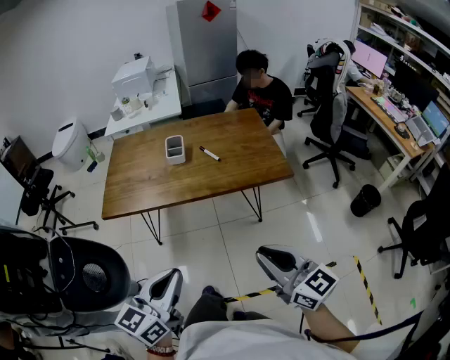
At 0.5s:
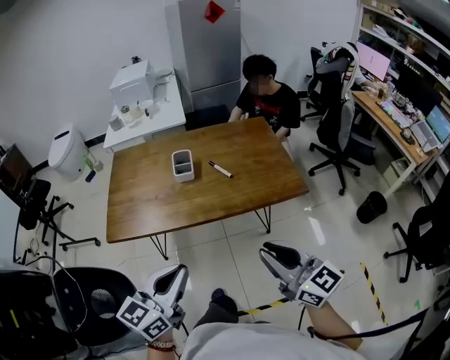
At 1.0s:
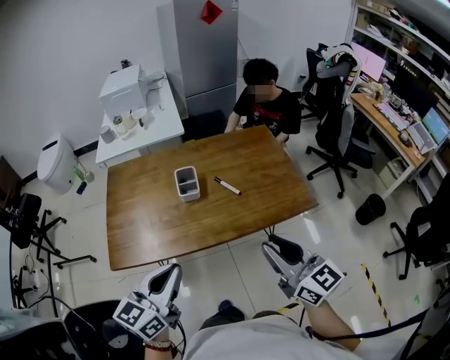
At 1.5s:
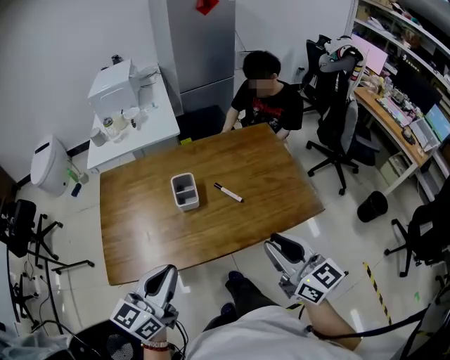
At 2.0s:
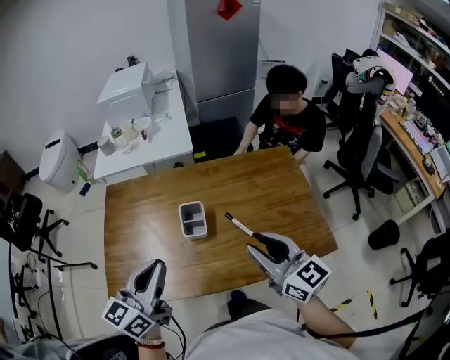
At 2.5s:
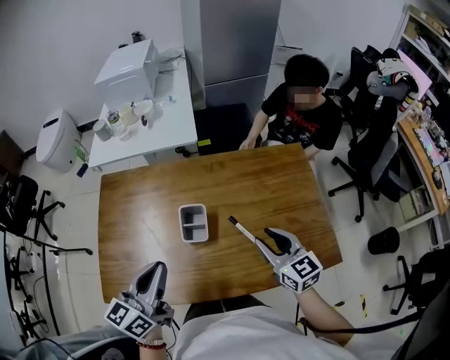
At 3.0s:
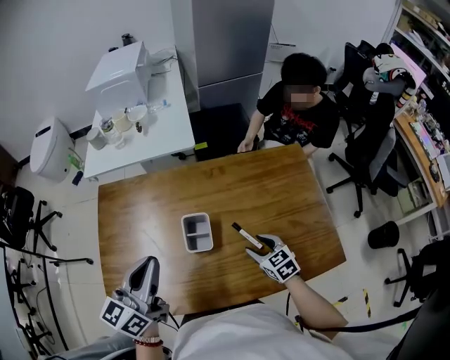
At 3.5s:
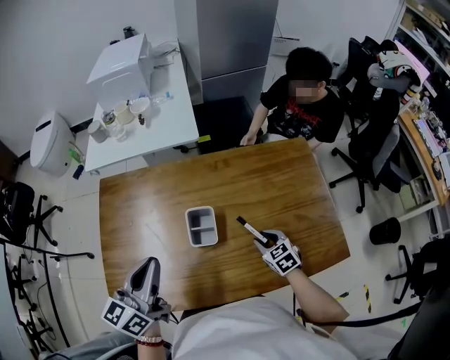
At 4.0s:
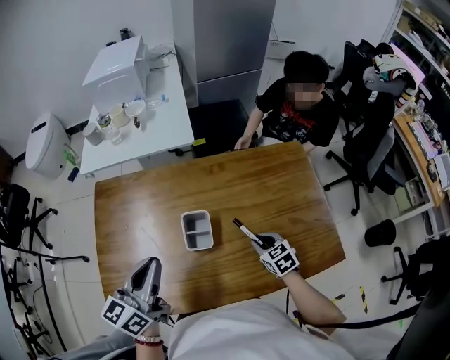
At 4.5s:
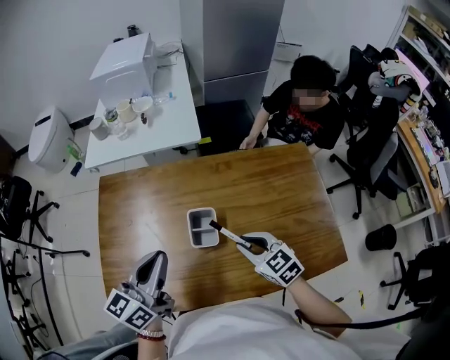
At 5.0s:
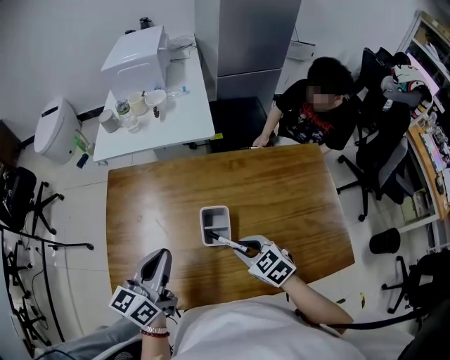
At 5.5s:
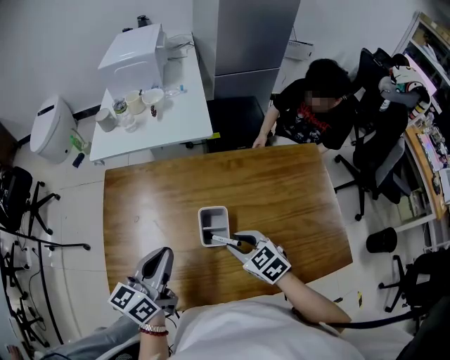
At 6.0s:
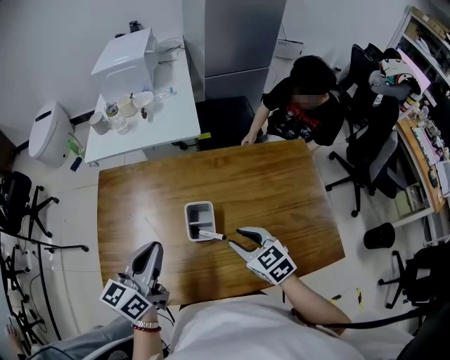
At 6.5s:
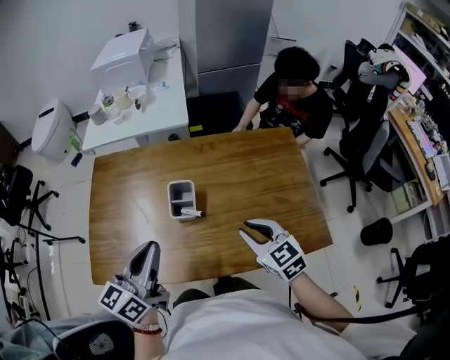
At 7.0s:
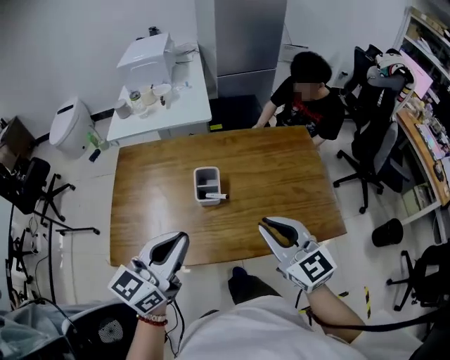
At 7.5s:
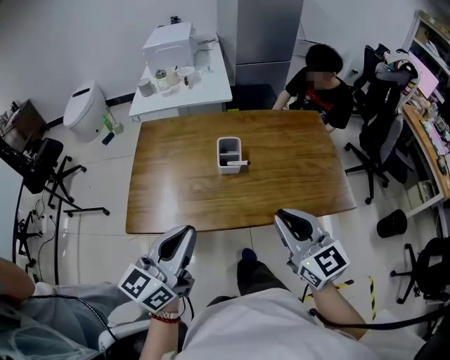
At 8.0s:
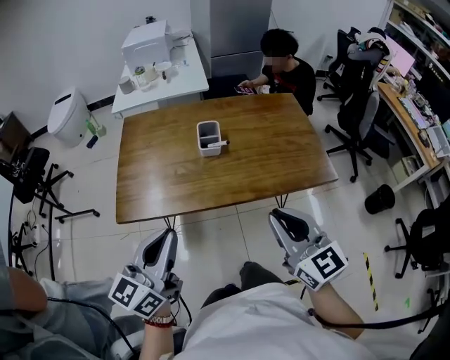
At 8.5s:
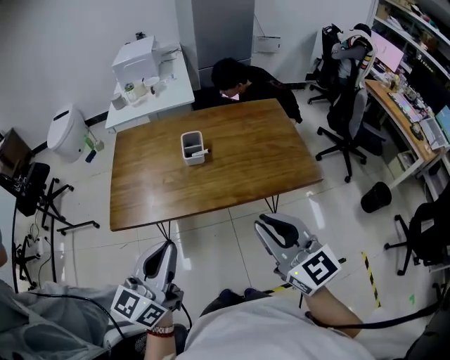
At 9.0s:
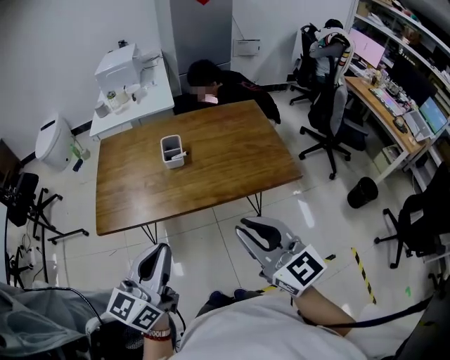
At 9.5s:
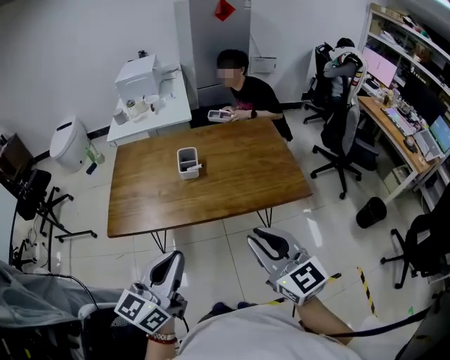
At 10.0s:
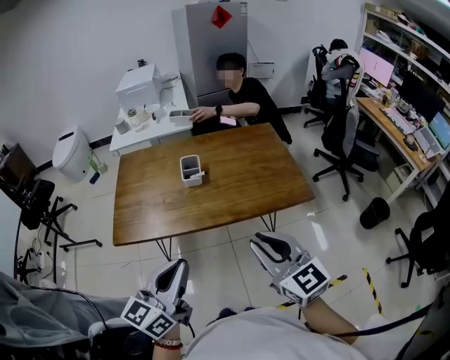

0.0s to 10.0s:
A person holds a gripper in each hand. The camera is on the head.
0.0s to 2.0s: Both grippers are carried forward, about 50 cm.
2.0s to 4.0s: The right gripper goes approximately 30 cm downward, angles its fingers downward, by about 40 degrees, and opens, then closes again, while the left gripper heads forward and downward, covering some 10 cm.
4.0s to 6.0s: The right gripper travels upward and to the left by roughly 15 cm.
6.0s to 8.0s: The left gripper goes roughly 35 cm backward, while the right gripper moves backward and upward, about 40 cm, swivels approximately 30 degrees, and closes up.
8.0s to 10.0s: The left gripper shifts roughly 15 cm to the right and backward. The right gripper travels backward and to the right by some 10 cm.

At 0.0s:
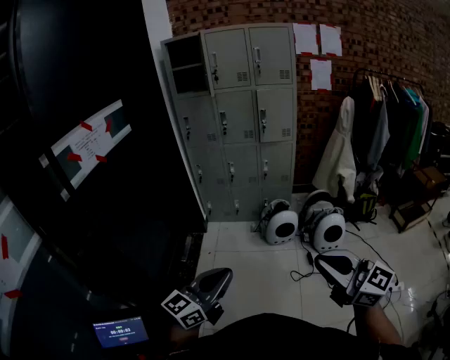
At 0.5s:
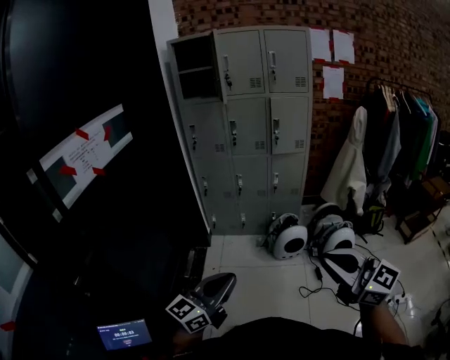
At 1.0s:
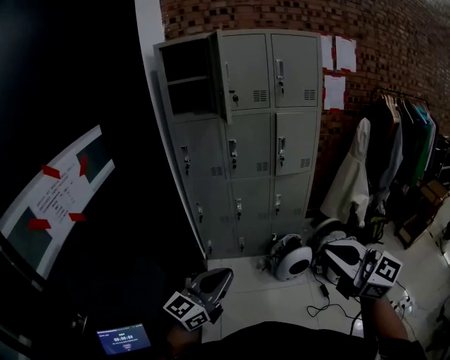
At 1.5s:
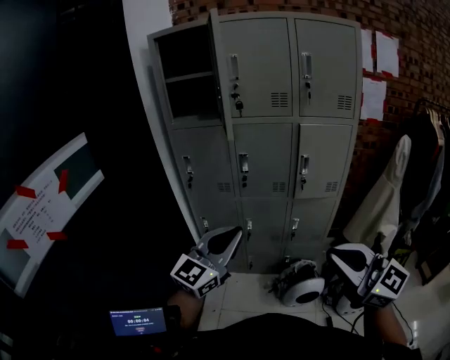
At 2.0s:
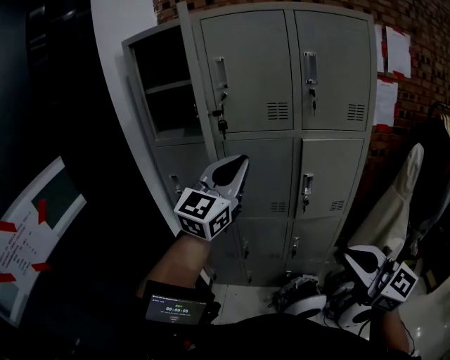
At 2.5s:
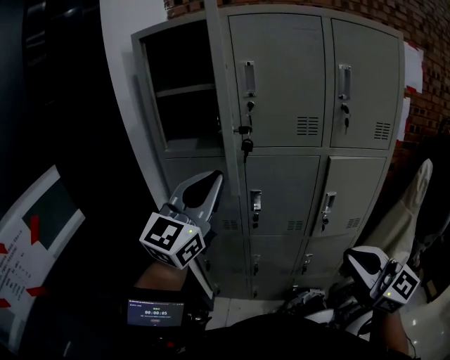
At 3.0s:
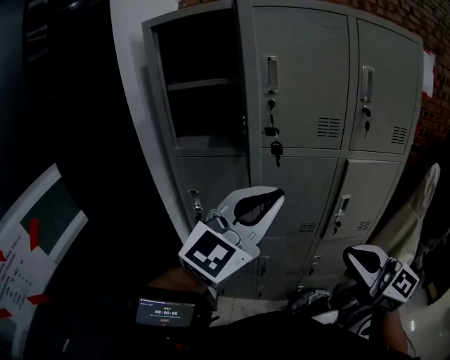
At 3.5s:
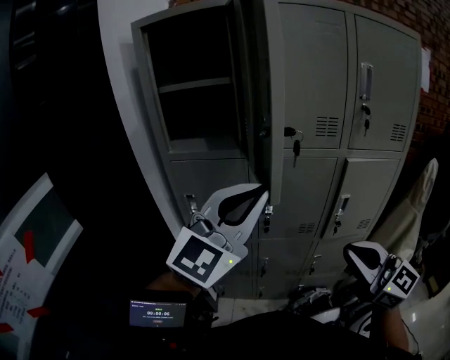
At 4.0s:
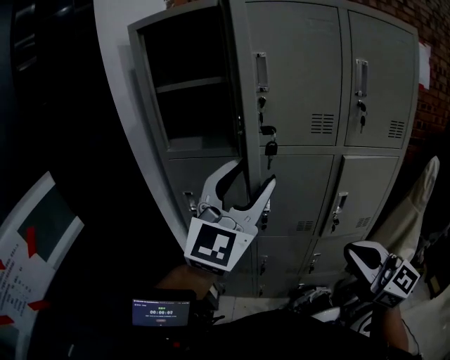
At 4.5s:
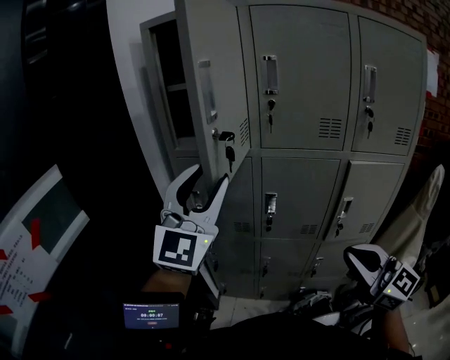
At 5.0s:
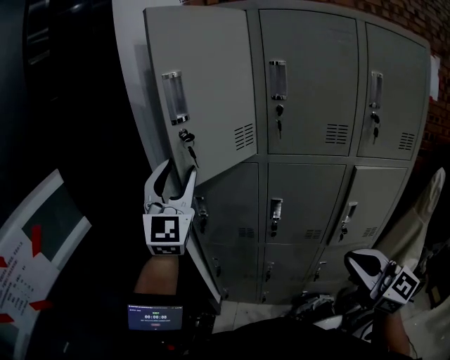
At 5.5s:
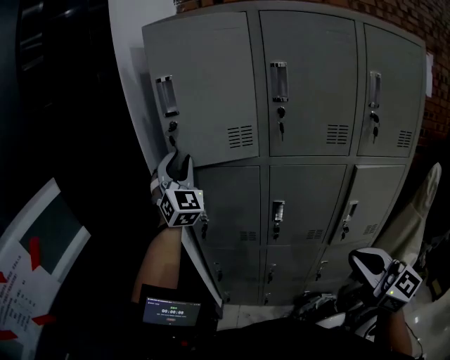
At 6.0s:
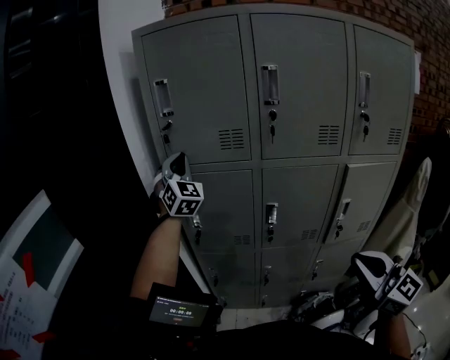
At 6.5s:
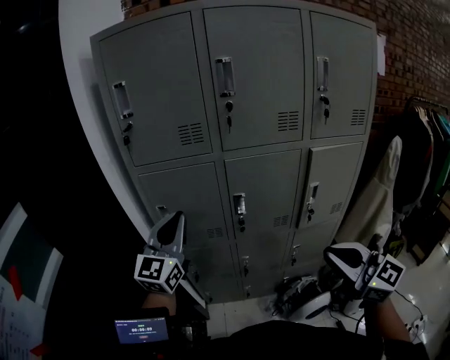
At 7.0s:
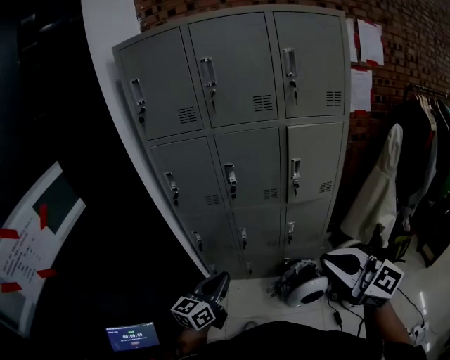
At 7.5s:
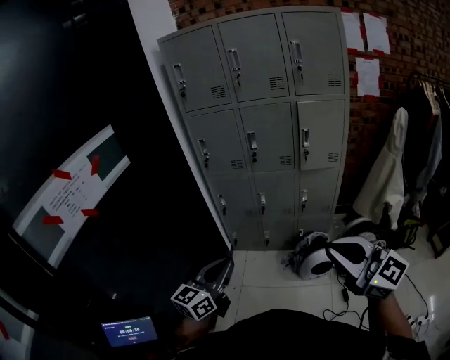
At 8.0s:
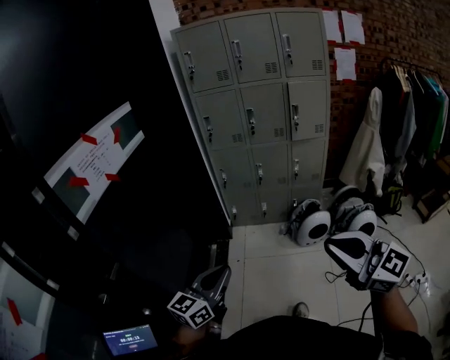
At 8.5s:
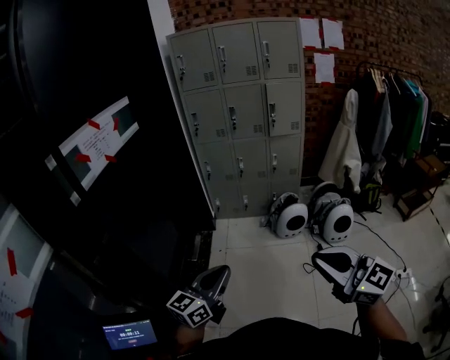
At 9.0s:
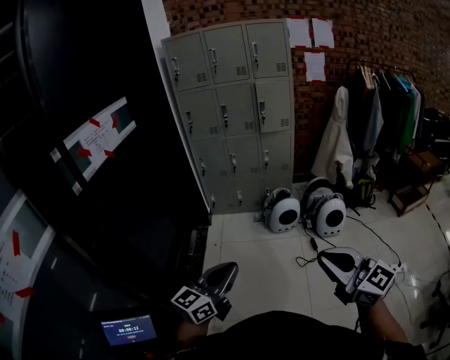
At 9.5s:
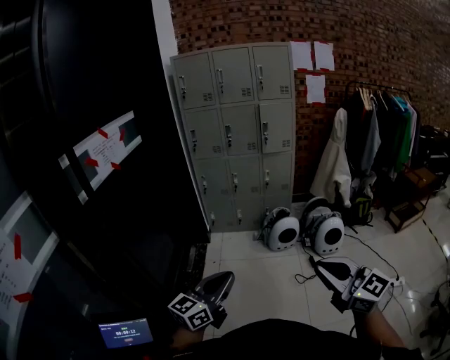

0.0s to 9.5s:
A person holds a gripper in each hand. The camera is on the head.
0.0s to 2.0s: The two grippers travel together, forward, some 80 cm. The left gripper swivels approximately 30 degrees.
2.0s to 4.0s: The left gripper goes some 10 cm to the left, and opens its fingers; the right gripper heads forward and to the left, covering approximately 15 cm.
4.0s to 5.5s: The left gripper moves forward and to the left, roughly 30 cm, changes its angle by roughly 50 degrees, and closes its fingers.
5.5s to 7.5s: Both grippers are carried backward, approximately 50 cm. The left gripper rolls counterclockwise, seen from behind, by roughly 70 degrees, and closes.
7.5s to 9.5s: The two grippers travel together, backward, some 50 cm.

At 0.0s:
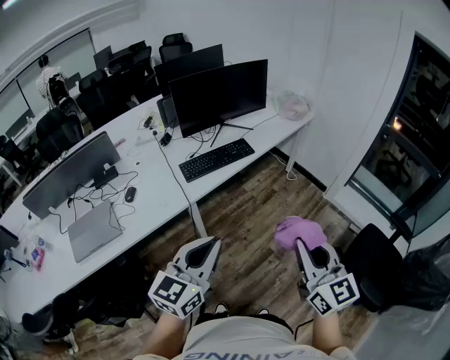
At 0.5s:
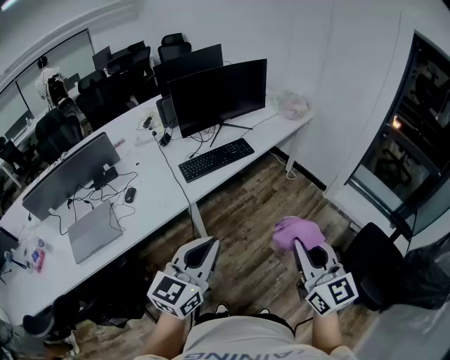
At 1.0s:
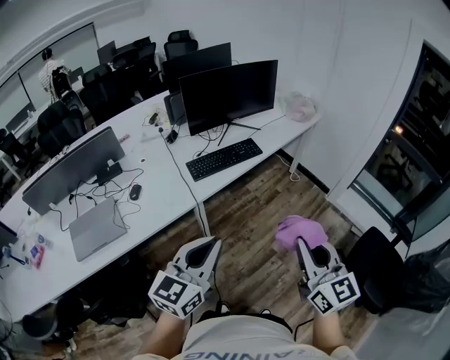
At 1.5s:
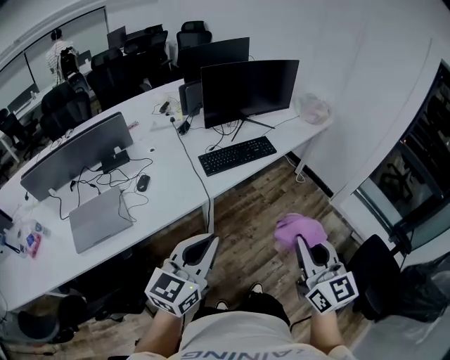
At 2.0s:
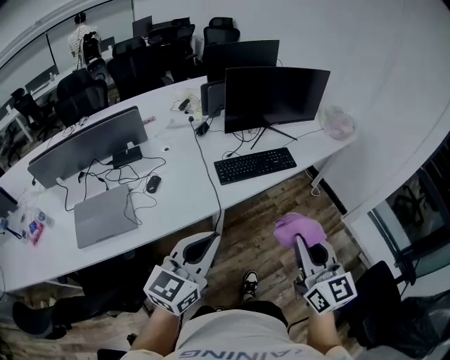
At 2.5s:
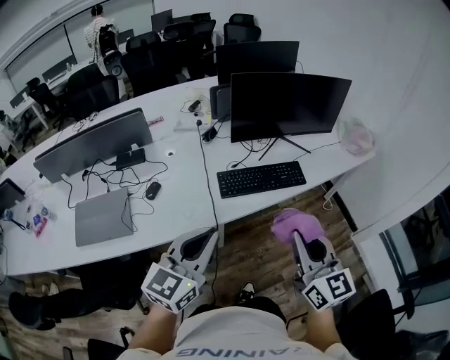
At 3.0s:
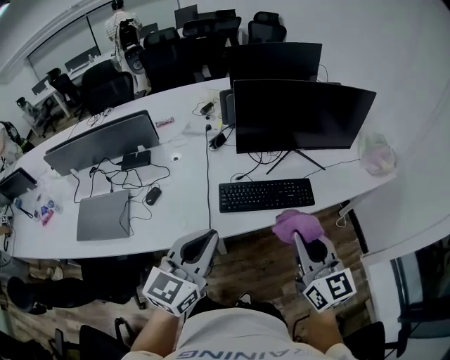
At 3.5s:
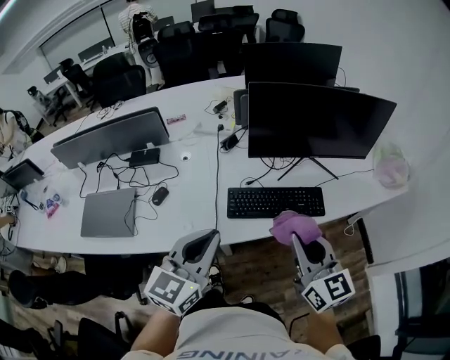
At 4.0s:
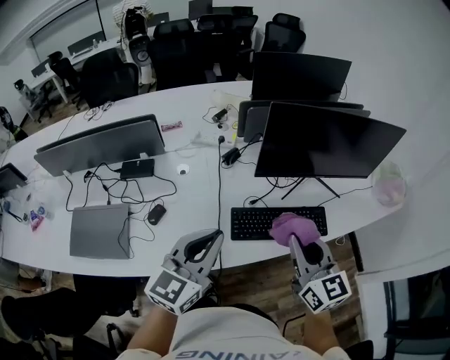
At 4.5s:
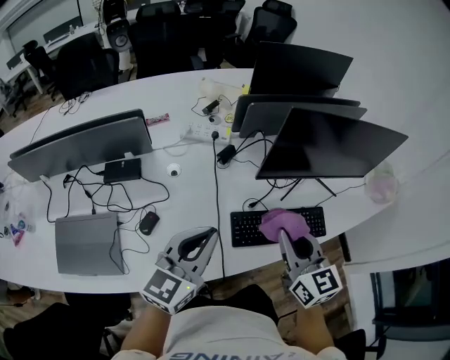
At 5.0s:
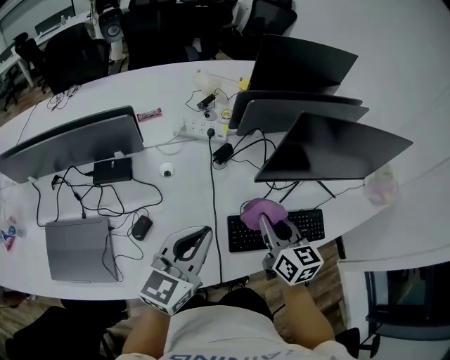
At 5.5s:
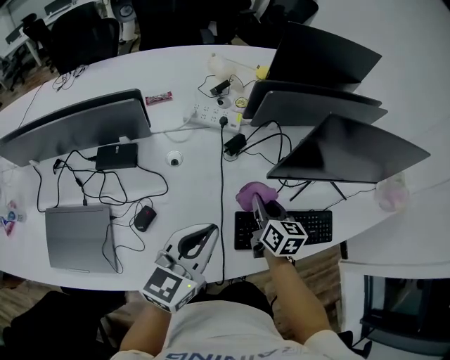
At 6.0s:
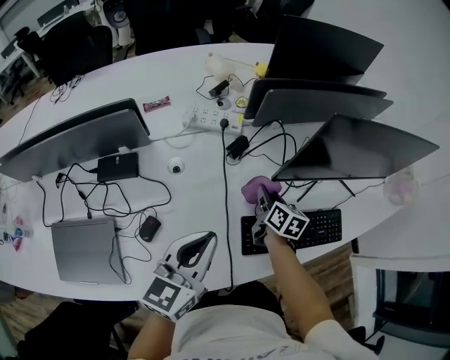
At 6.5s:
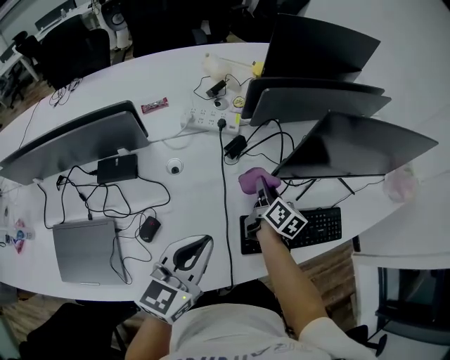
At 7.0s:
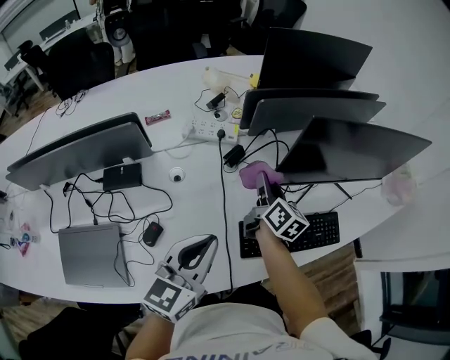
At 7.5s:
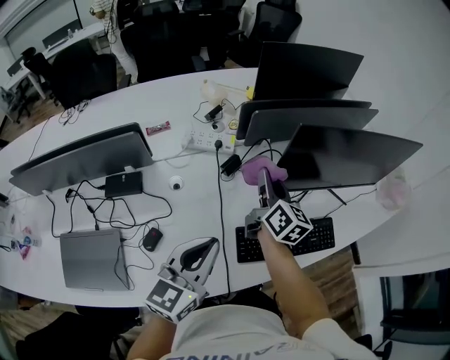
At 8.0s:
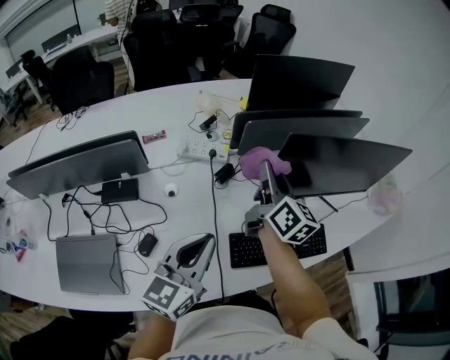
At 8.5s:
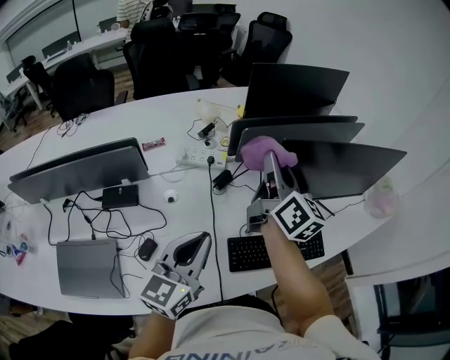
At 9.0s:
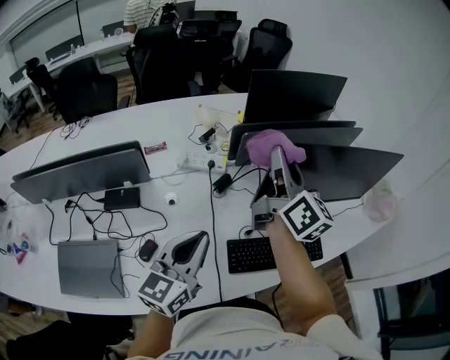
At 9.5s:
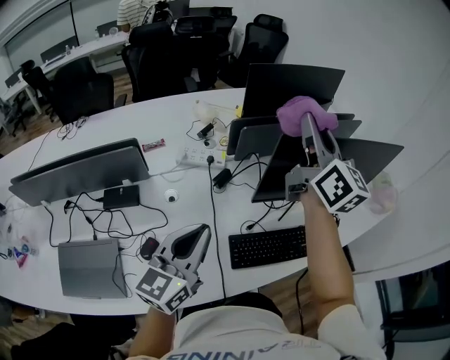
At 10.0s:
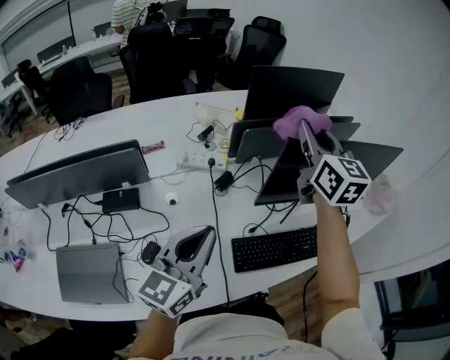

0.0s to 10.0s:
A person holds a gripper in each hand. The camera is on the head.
0.0s to 2.0s: The two grippers go roughly 15 cm to the left and forward.
2.0s to 4.0s: Both grippers move forward, approximately 30 cm.
4.0s to 6.0s: The left gripper travels forward, downward and to the left by some 15 cm. The right gripper is displaced downward, forward and to the left by roughly 35 cm, and turns by some 40 degrees.
6.0s to 8.0s: The left gripper moves upward, approximately 5 cm; the right gripper moves upward, roughly 25 cm, and angles its fingers upward, by roughly 30 degrees.
8.0s to 10.0s: The right gripper goes some 15 cm upward, and swivels roughly 30 degrees.
